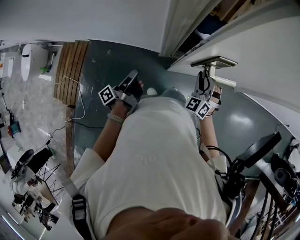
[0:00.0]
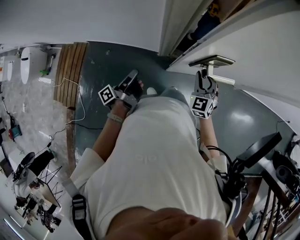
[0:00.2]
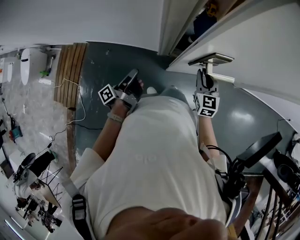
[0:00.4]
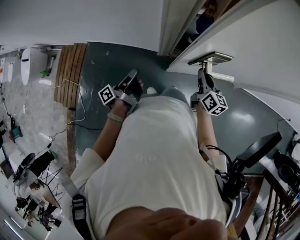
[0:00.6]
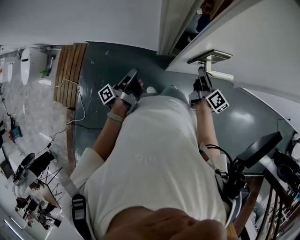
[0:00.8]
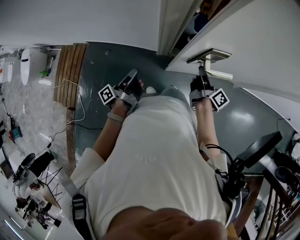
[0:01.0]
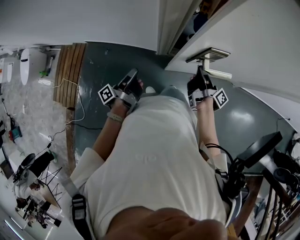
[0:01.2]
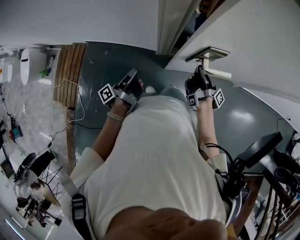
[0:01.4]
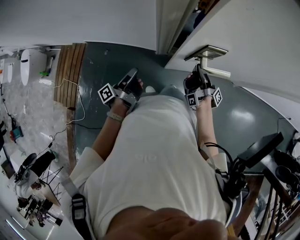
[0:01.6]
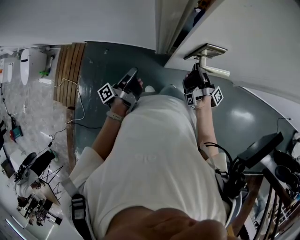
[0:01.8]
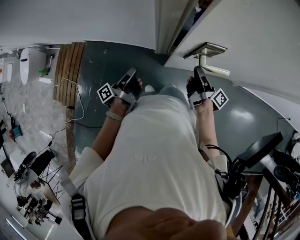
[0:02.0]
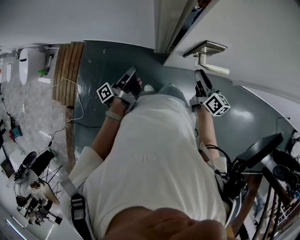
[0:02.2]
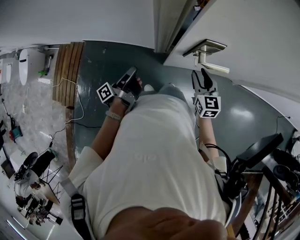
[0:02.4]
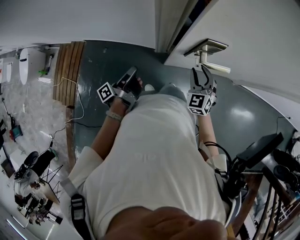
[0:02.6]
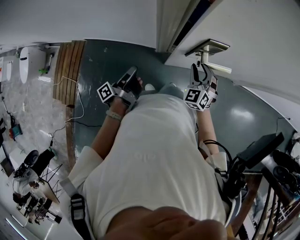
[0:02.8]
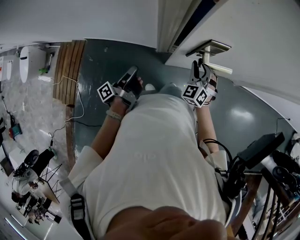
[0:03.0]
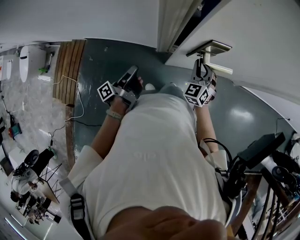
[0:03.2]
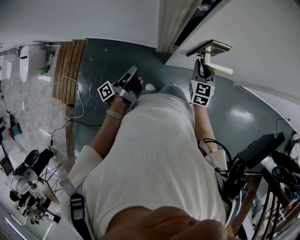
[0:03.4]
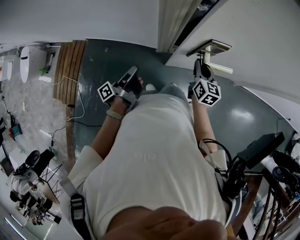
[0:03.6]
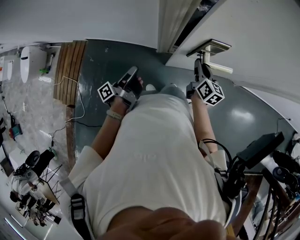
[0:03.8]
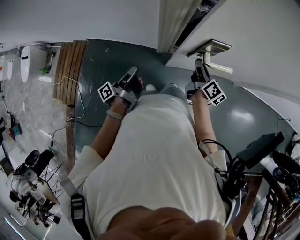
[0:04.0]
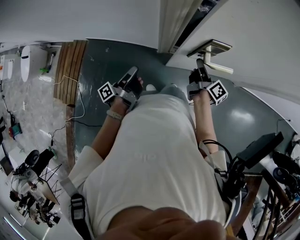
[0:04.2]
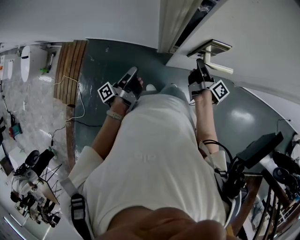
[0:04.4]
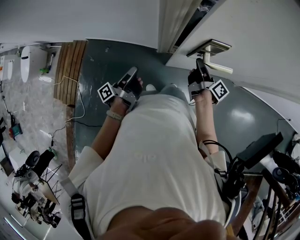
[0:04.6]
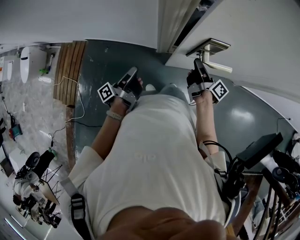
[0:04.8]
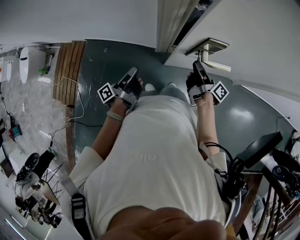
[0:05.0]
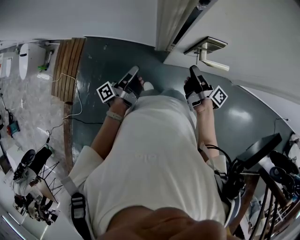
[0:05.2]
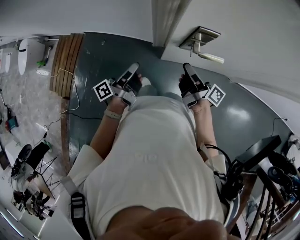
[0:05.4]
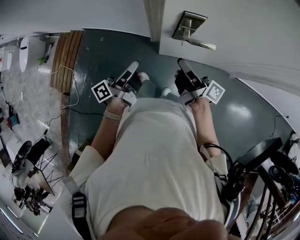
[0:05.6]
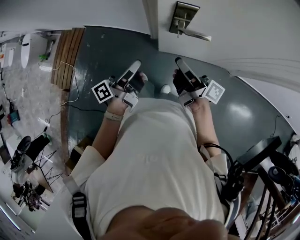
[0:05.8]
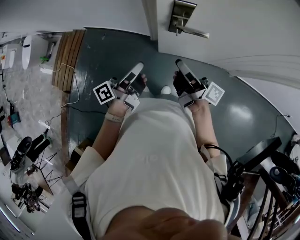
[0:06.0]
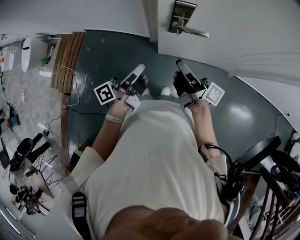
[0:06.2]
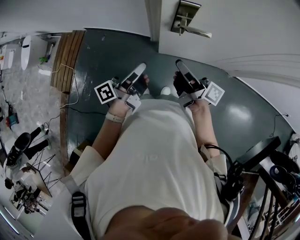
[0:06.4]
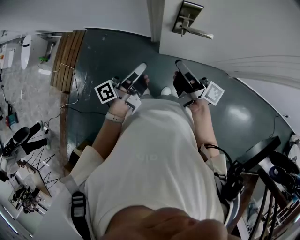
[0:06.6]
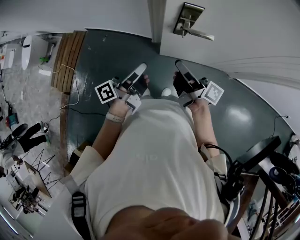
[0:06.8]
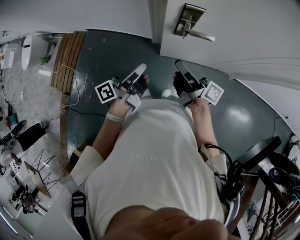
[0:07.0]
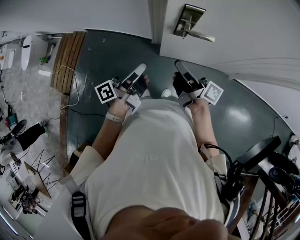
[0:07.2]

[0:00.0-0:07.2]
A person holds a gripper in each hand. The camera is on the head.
0.0 to 1.4 s: The right gripper rolls clockwise, seen from behind, by about 160 degrees.
1.4 to 2.8 s: The right gripper twists roughly 150 degrees counterclockwise, seen from behind, and opens up.
2.8 to 4.4 s: The right gripper rotates around the line of its fingers by approximately 120 degrees, clockwise from behind.
4.4 to 5.8 s: The right gripper shifts by some 25 cm, and changes its angle by approximately 30 degrees.

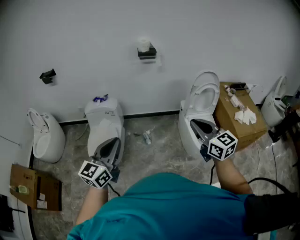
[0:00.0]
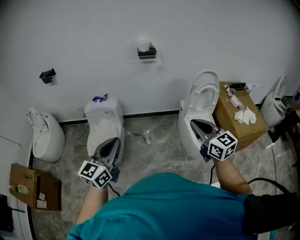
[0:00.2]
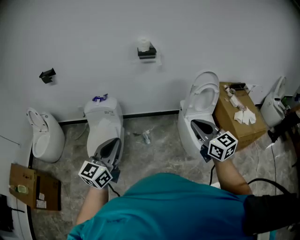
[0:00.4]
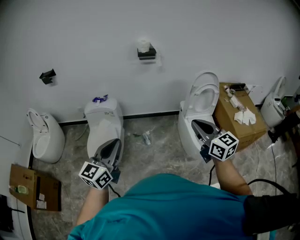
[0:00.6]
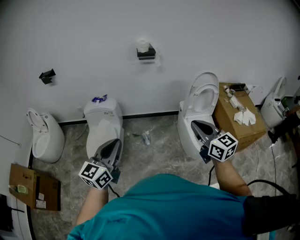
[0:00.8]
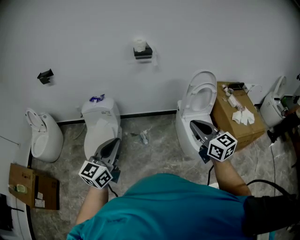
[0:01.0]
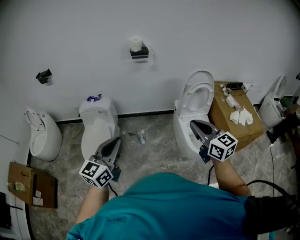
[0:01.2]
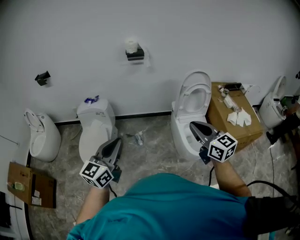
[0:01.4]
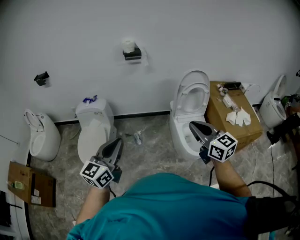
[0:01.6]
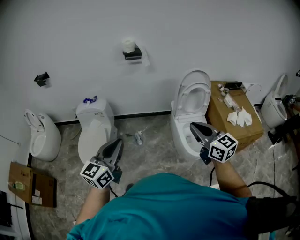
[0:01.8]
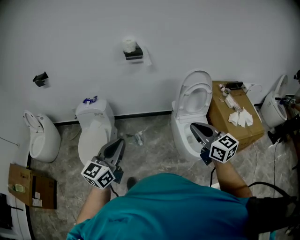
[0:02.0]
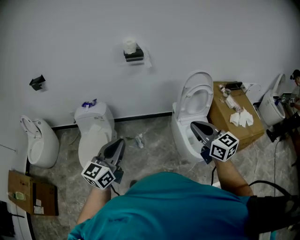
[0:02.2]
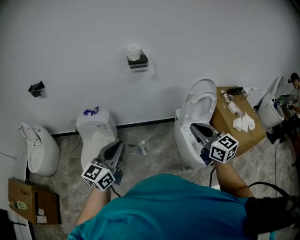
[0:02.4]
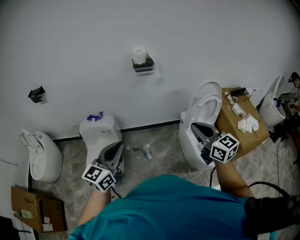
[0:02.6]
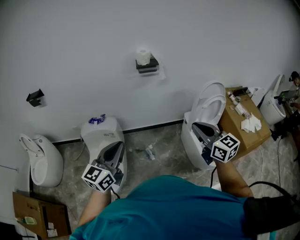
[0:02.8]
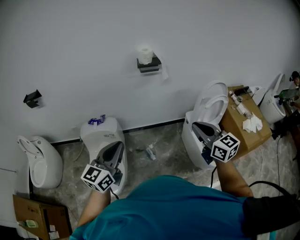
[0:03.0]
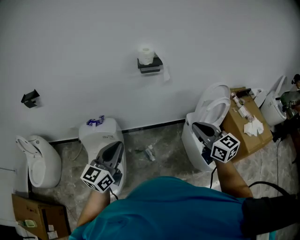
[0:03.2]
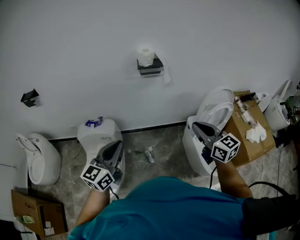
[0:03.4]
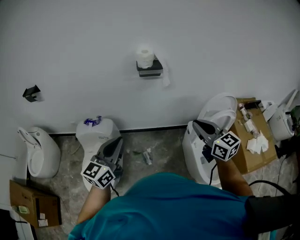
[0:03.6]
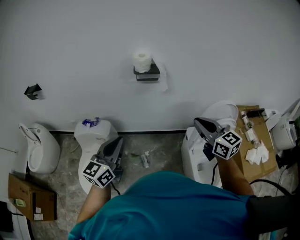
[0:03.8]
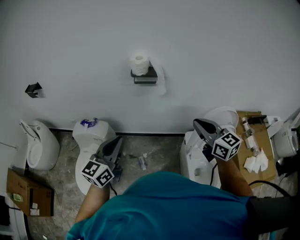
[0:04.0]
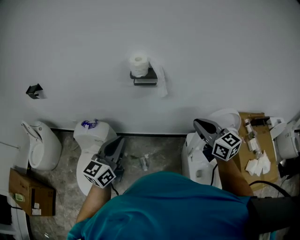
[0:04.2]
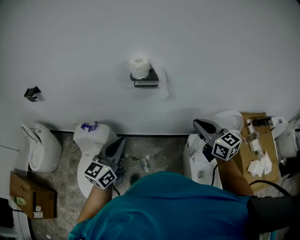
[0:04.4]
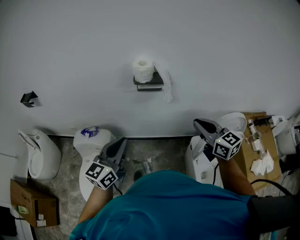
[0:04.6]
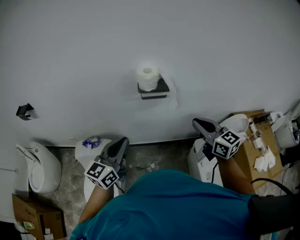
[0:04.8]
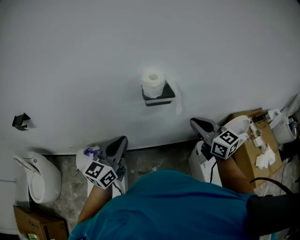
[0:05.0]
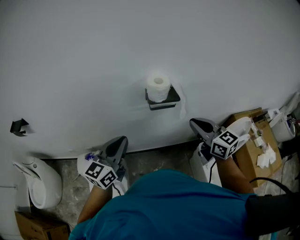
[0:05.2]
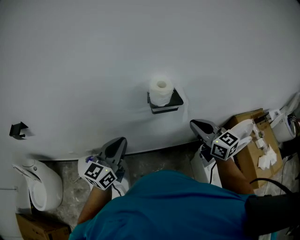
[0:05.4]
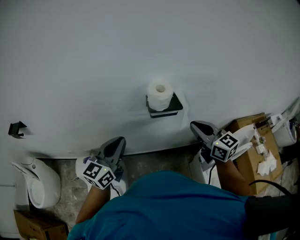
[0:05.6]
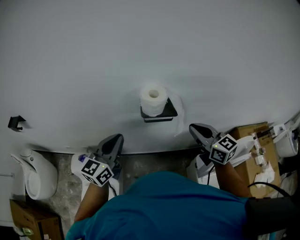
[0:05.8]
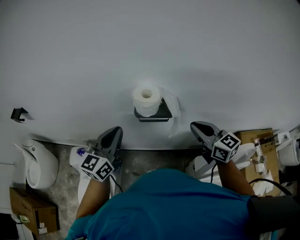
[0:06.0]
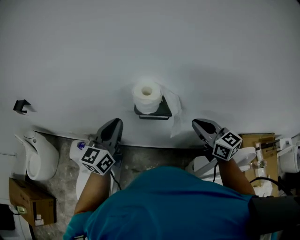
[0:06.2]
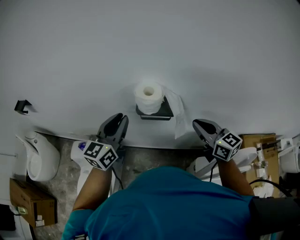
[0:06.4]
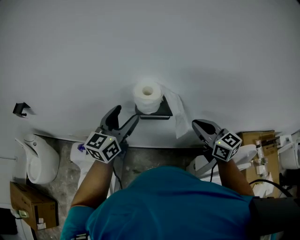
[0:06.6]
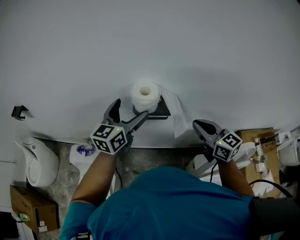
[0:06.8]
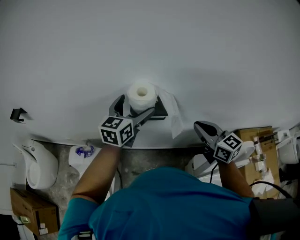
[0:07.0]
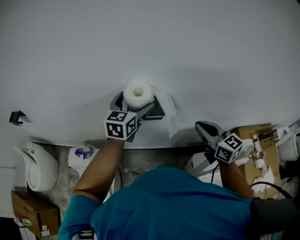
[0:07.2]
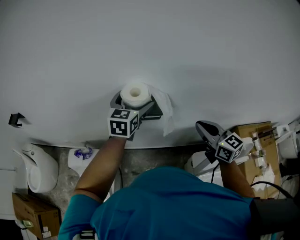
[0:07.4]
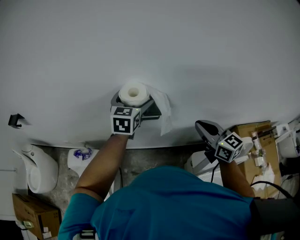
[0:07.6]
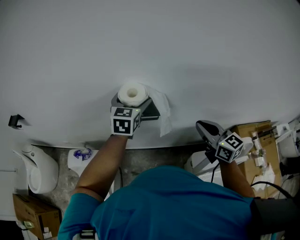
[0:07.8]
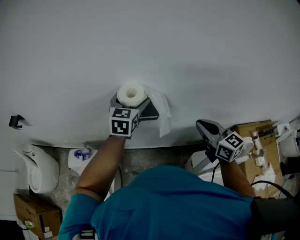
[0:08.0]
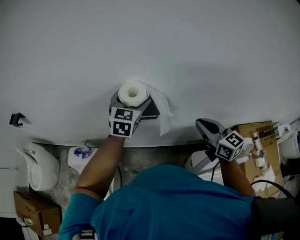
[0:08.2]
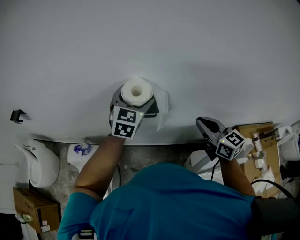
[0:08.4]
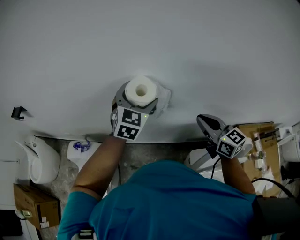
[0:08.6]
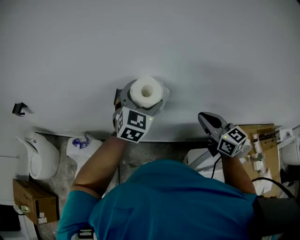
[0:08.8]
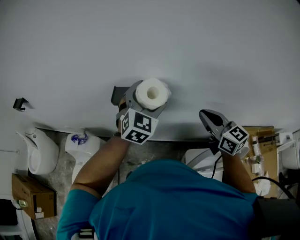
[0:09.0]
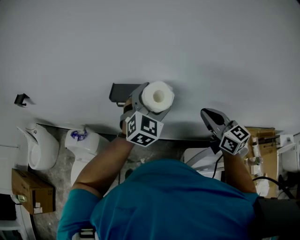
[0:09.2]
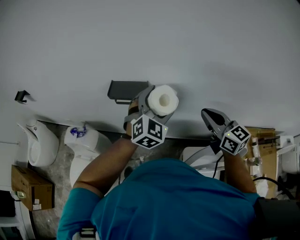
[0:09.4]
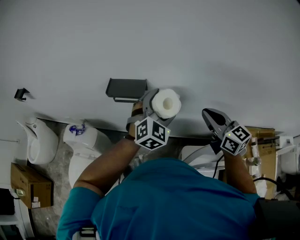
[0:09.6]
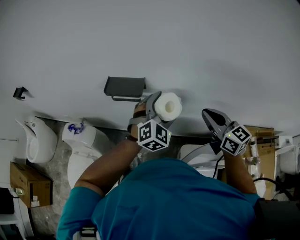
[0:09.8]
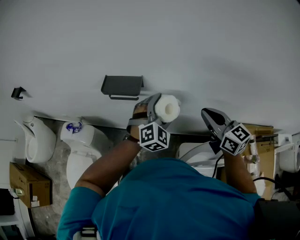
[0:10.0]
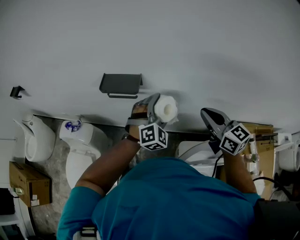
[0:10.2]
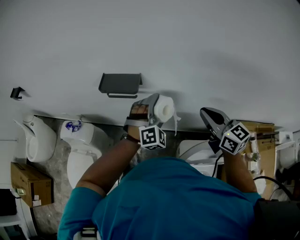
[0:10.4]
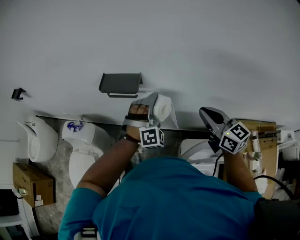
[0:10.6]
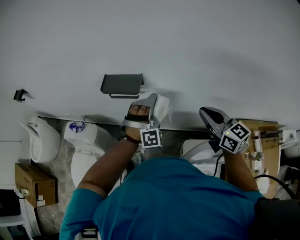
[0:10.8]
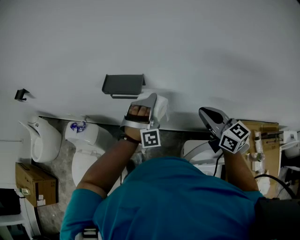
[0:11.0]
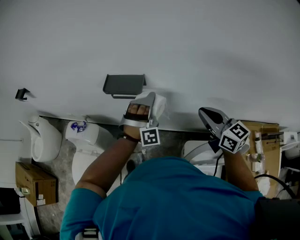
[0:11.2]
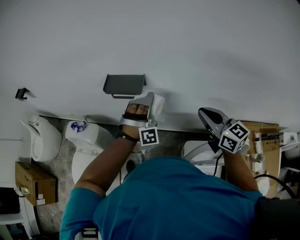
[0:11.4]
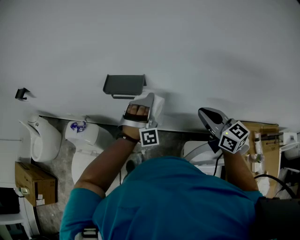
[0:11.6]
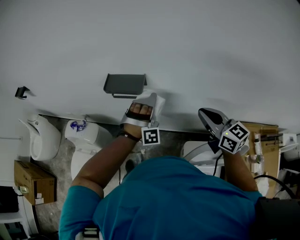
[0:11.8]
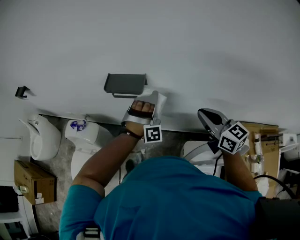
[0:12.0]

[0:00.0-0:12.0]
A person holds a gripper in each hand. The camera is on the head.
0.0 to 1.6 s: Both grippers move to the right, approximately 15 cm.
1.6 to 3.0 s: The grippers both shift forward and to the left by roughly 30 cm.
3.0 to 4.4 s: Both grippers move forward and to the right, approximately 30 cm.
4.4 to 6.0 s: The grippers both shift forward by about 25 cm.
6.0 to 7.6 s: The right gripper goes about 5 cm to the right. Meanwhile the left gripper shifts roughly 20 cm to the right and forward, rotates some 20 degrees, and opens up.
7.6 to 9.0 s: The left gripper shifts approximately 15 cm to the right and backward, and swivels approximately 30 degrees. The right gripper is displaced to the right by roughly 10 cm.
9.0 to 10.4 s: The right gripper shifts by about 5 cm; the left gripper is displaced downward and to the right by approximately 15 cm, and turns by about 30 degrees.
10.4 to 12.0 s: The left gripper goes about 5 cm forward, and turns by some 40 degrees.

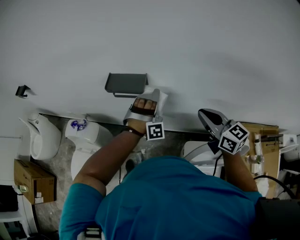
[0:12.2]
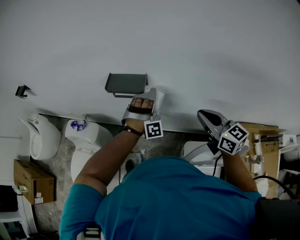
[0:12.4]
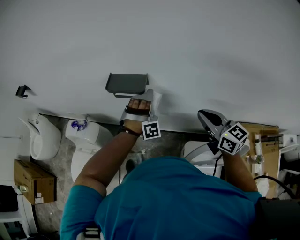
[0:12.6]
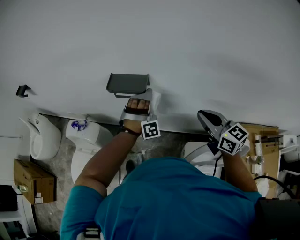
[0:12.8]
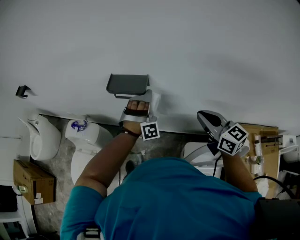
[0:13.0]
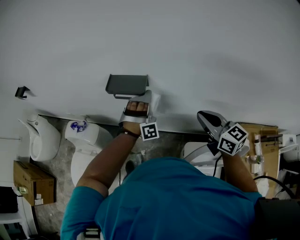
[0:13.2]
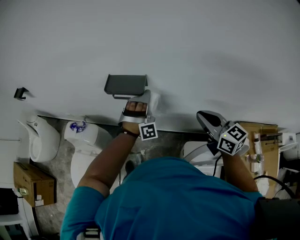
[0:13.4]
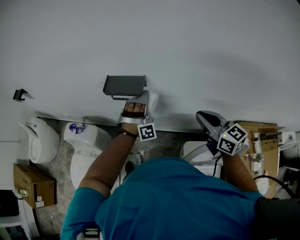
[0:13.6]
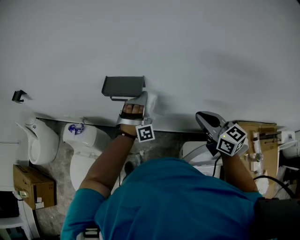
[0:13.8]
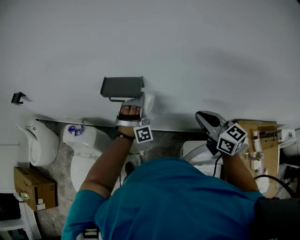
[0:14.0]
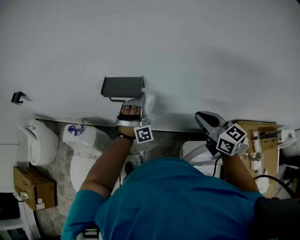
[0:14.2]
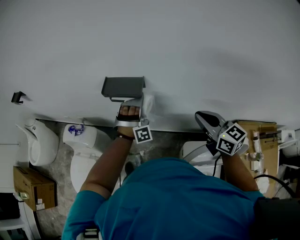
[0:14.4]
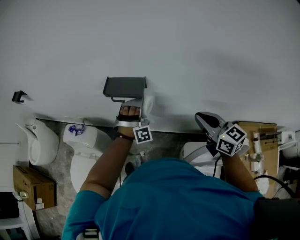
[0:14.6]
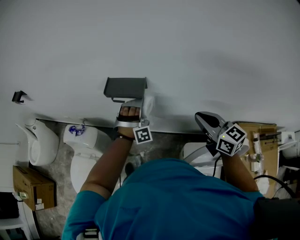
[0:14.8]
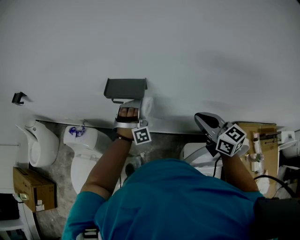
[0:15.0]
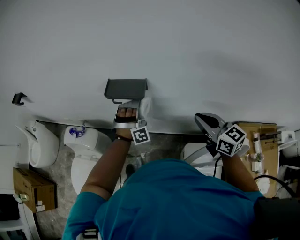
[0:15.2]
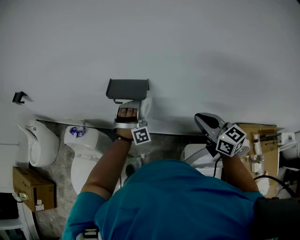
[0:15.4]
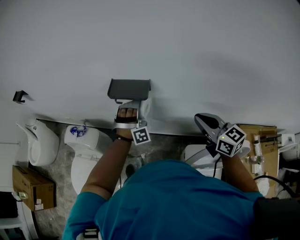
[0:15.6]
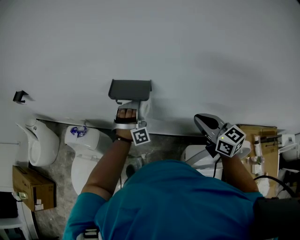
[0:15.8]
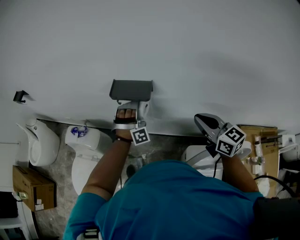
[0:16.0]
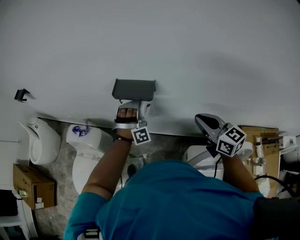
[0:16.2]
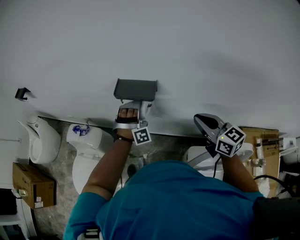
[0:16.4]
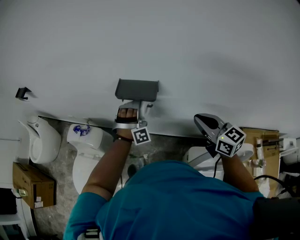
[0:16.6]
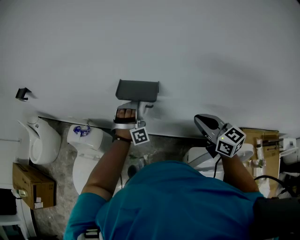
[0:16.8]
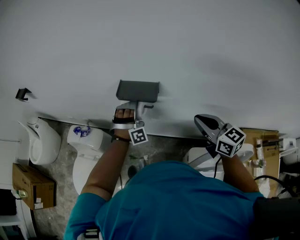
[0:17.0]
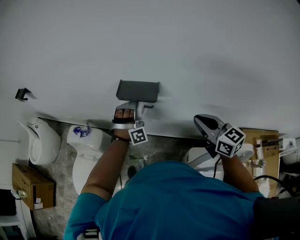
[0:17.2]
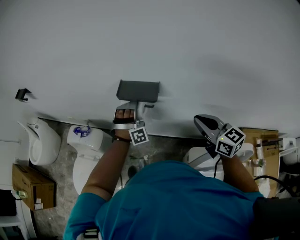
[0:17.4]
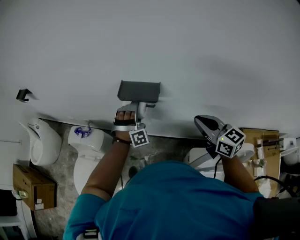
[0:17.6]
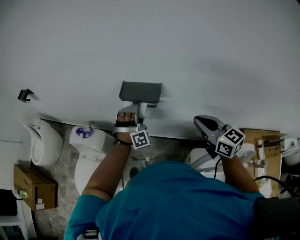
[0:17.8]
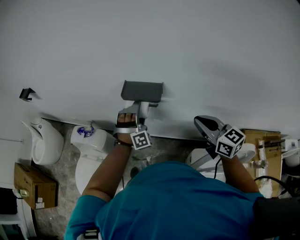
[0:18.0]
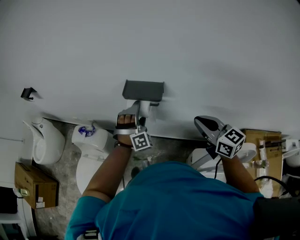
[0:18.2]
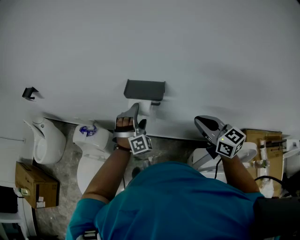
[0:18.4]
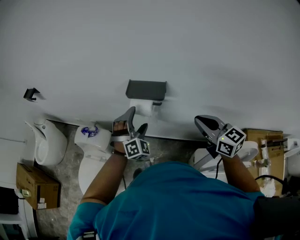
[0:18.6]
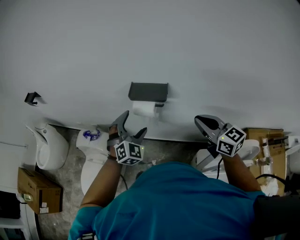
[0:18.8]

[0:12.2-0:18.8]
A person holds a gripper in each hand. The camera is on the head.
12.2 to 13.8 s: The grippers make only small movements.
13.8 to 15.4 s: There are only small adjustments of the grippers.
15.4 to 17.2 s: The left gripper ends up approximately 5 cm from where it was.
17.2 to 18.8 s: The left gripper shifts about 15 cm backward, to the left and upward, and rotates around the line of its fingers by approximately 40 degrees, counterclockwise from behind.
